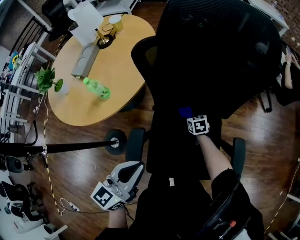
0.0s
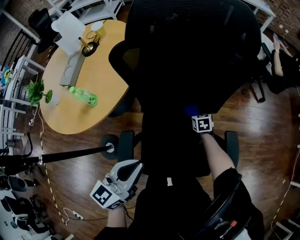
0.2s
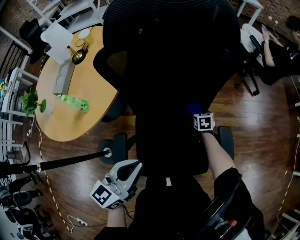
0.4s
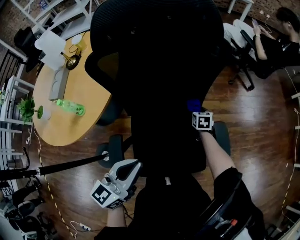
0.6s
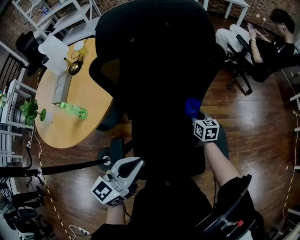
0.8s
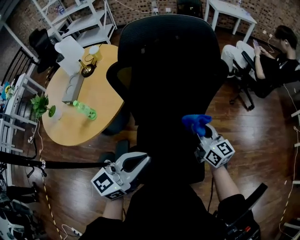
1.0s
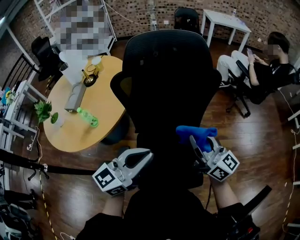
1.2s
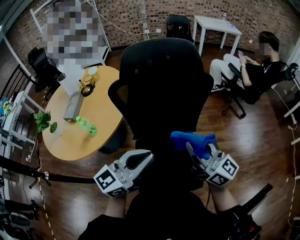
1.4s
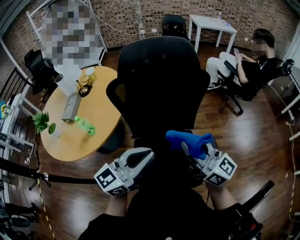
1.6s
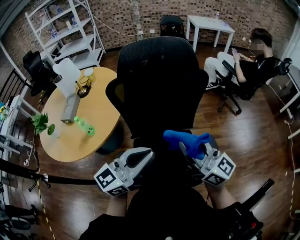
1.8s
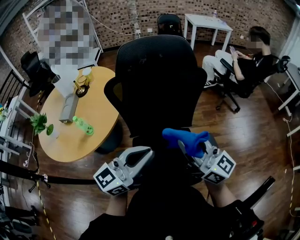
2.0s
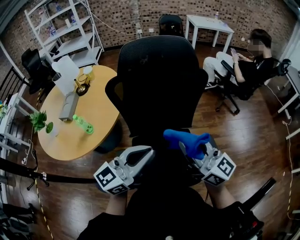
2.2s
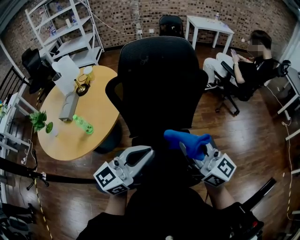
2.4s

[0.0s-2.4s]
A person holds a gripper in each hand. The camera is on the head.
0.0s to 1.2s: The right gripper travels upward by roughly 40 cm, and tilts its fingers approximately 70 degrees upward, while the left gripper goes some 15 cm to the right, upward and forward, and rotates roughly 30 degrees.
1.2s to 2.4s: The right gripper goes some 10 cm backward and upward.

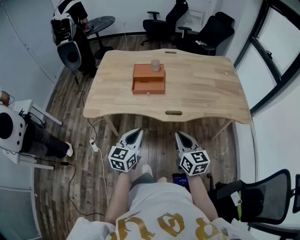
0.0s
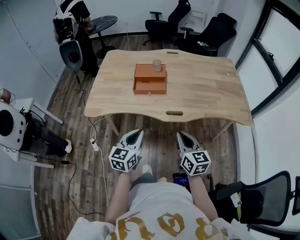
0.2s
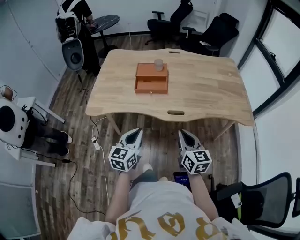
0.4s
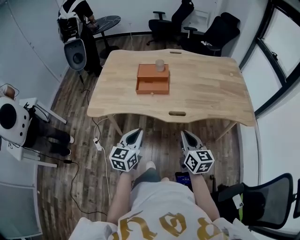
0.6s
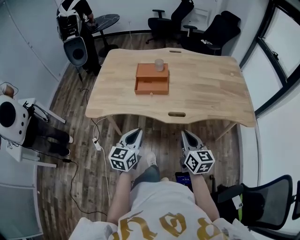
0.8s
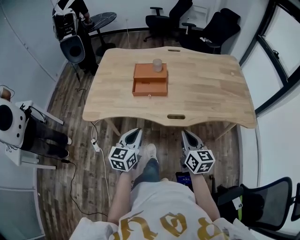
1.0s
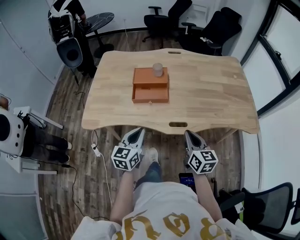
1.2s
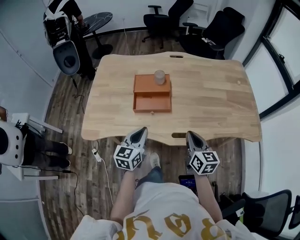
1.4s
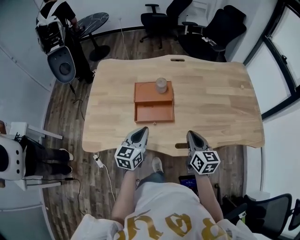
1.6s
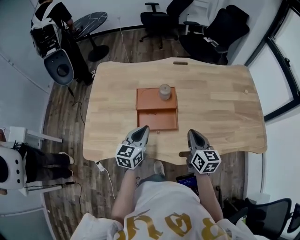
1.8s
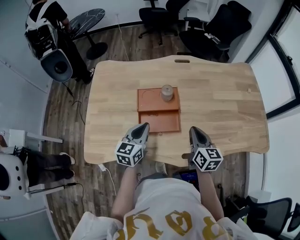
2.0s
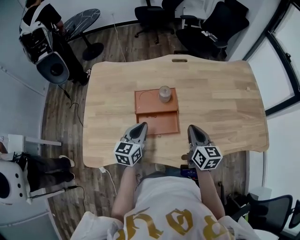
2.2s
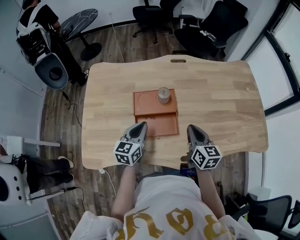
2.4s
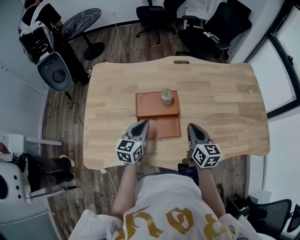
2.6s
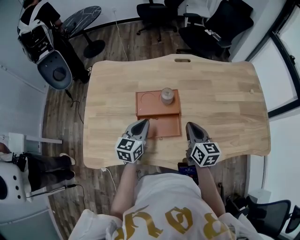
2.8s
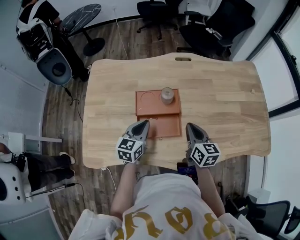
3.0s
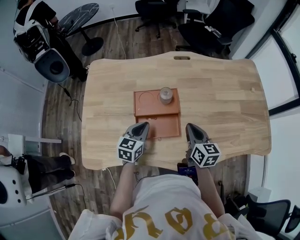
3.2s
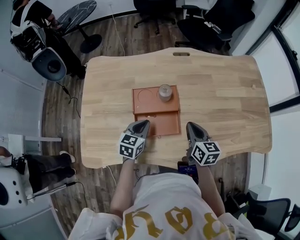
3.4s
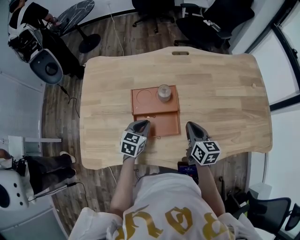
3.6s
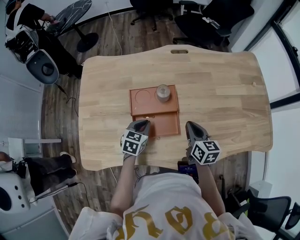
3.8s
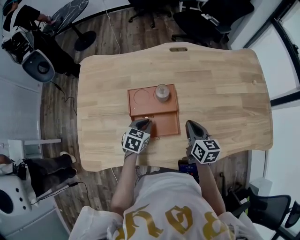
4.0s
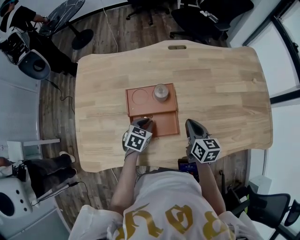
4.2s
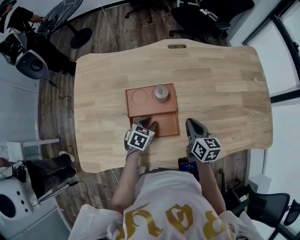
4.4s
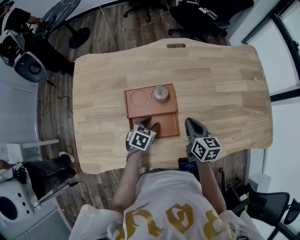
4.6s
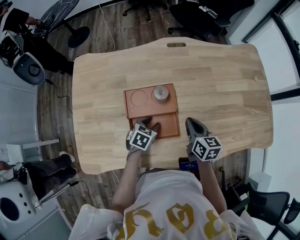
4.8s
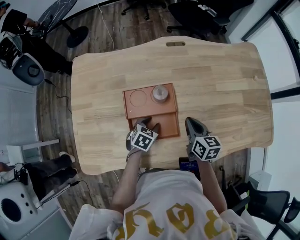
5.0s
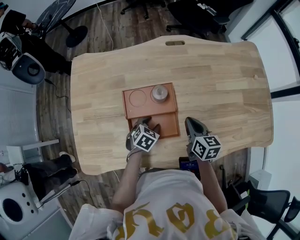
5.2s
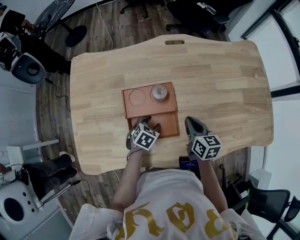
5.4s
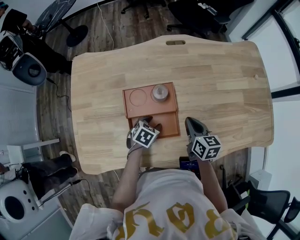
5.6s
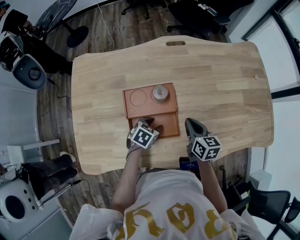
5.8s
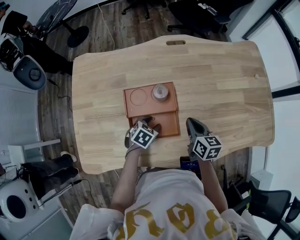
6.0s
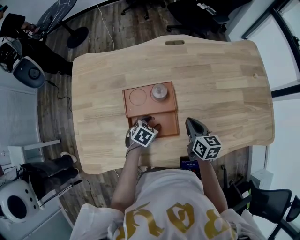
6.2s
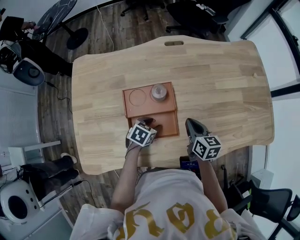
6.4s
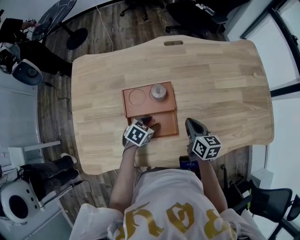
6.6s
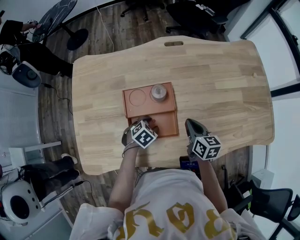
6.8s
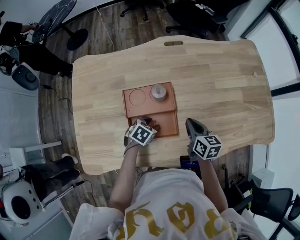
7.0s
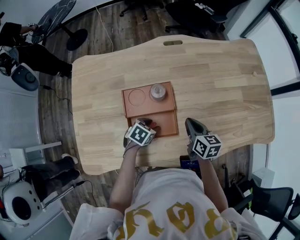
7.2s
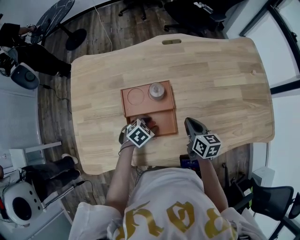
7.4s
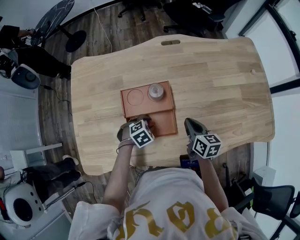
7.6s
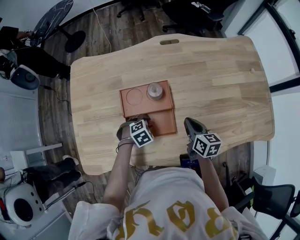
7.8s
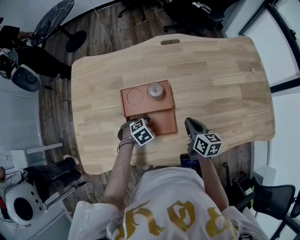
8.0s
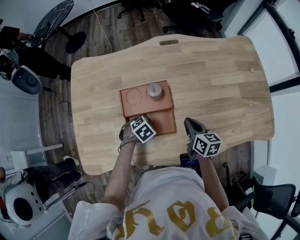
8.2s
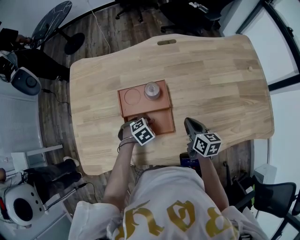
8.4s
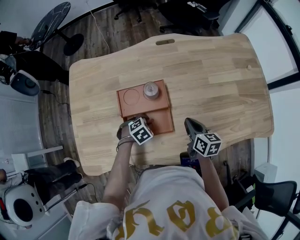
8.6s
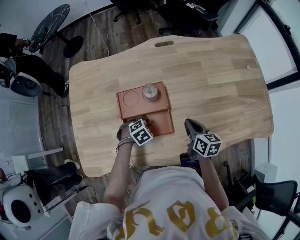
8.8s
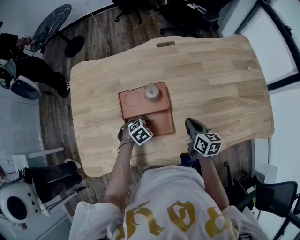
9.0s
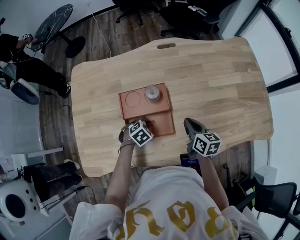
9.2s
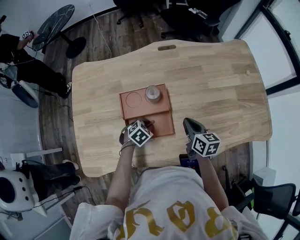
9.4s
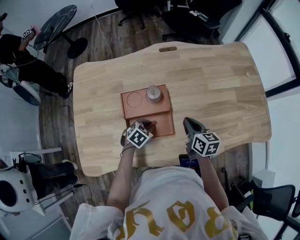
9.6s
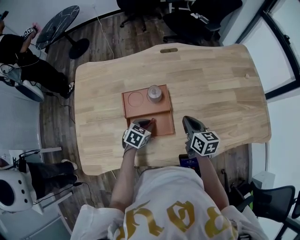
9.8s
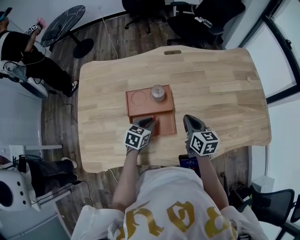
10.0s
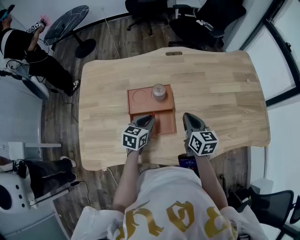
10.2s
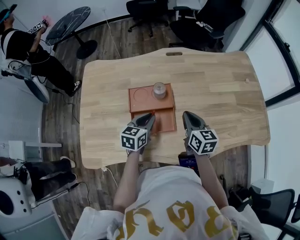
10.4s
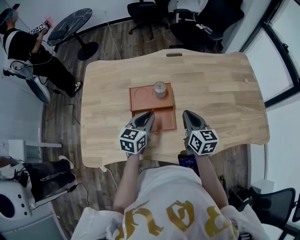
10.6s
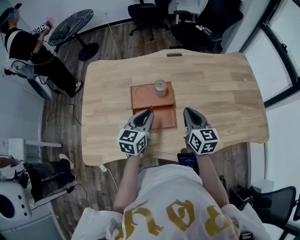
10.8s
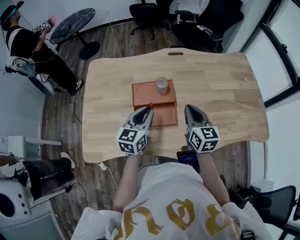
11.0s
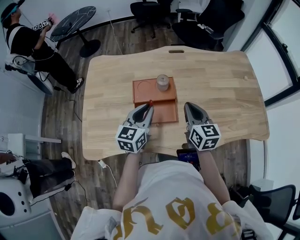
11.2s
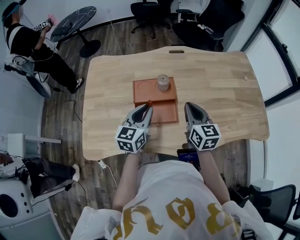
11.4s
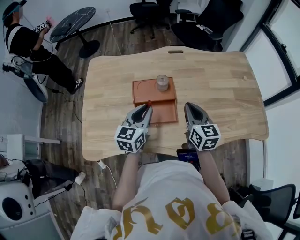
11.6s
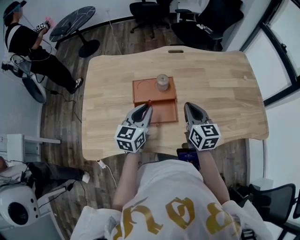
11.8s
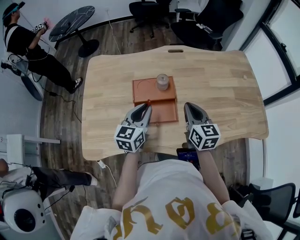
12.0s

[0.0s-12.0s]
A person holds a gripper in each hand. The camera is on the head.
0.0s to 1.6s: The grippers both shift forward by approximately 30 cm.
1.6s to 3.0s: The grippers both shift forward by about 15 cm.
3.0s to 4.4s: The left gripper heads downward, covering about 15 cm, and changes its angle by about 30 degrees. The right gripper travels downward by roughly 5 cm.
4.4s to 6.0s: The left gripper opens its fingers.
6.0s to 7.6s: The left gripper rotates some 30 degrees.
7.6s to 9.0s: The left gripper closes up.
9.0s to 10.4s: The left gripper moves upward, some 15 cm, and tilts its fingers roughly 40 degrees upward, while the right gripper travels upward by roughly 10 cm.
10.4s to 12.0s: The right gripper heads upward, covering some 5 cm. Meanwhile the left gripper heads upward, covering approximately 10 cm.

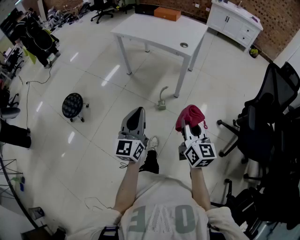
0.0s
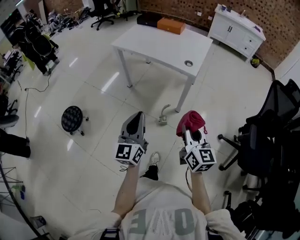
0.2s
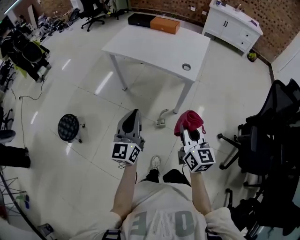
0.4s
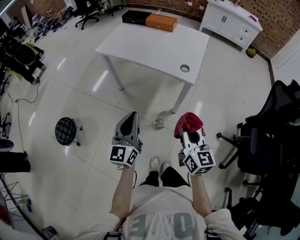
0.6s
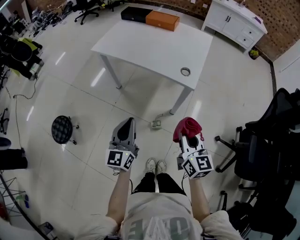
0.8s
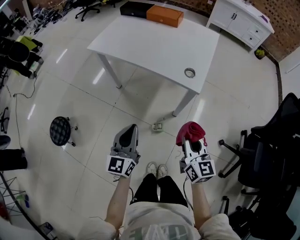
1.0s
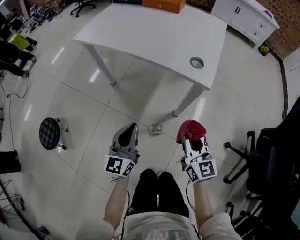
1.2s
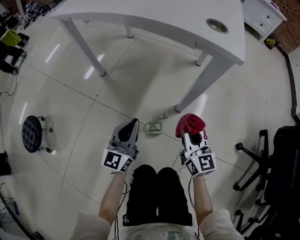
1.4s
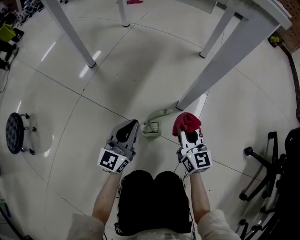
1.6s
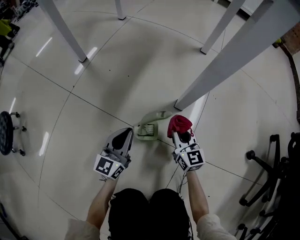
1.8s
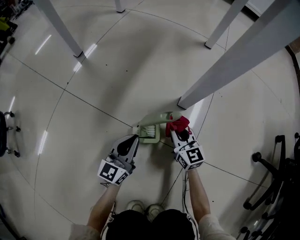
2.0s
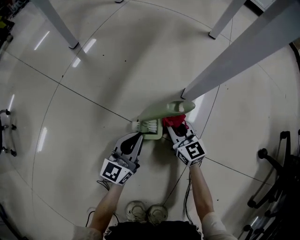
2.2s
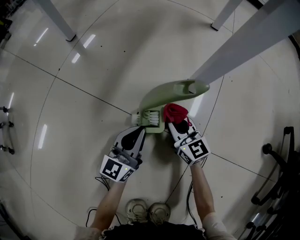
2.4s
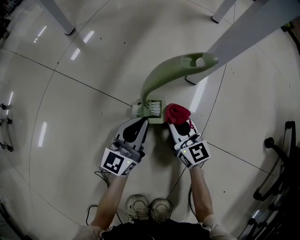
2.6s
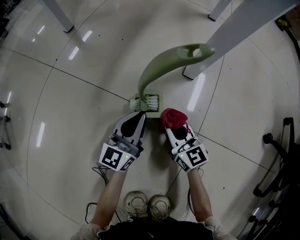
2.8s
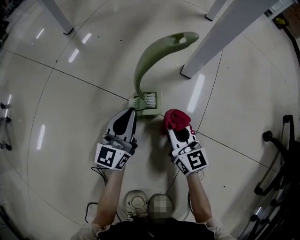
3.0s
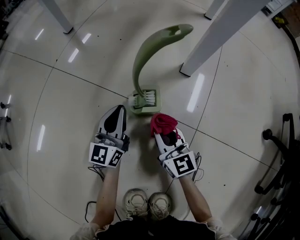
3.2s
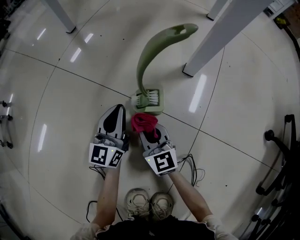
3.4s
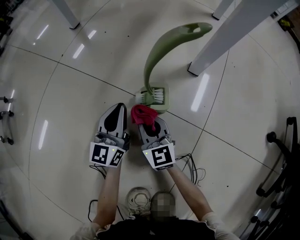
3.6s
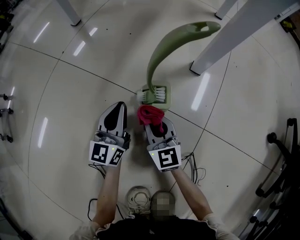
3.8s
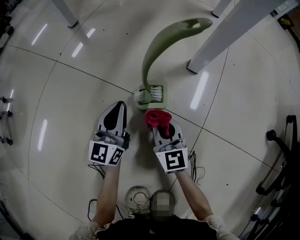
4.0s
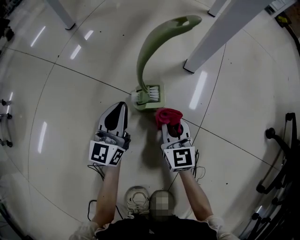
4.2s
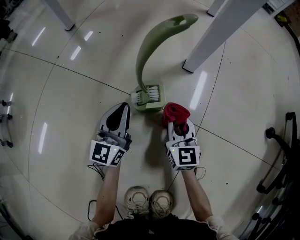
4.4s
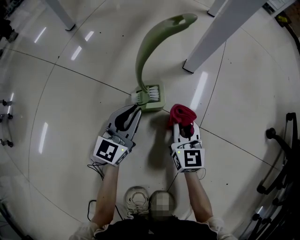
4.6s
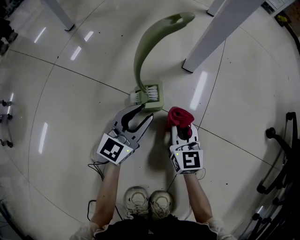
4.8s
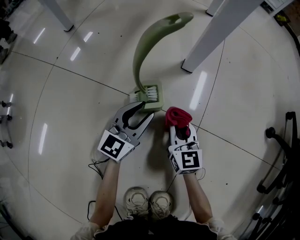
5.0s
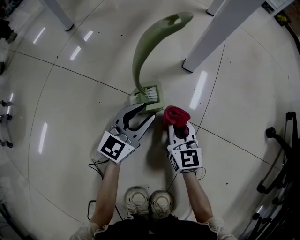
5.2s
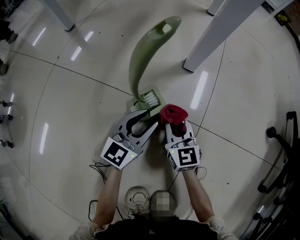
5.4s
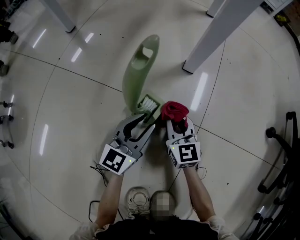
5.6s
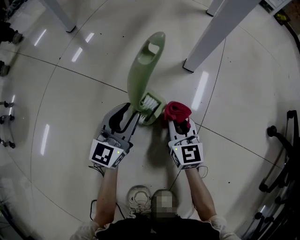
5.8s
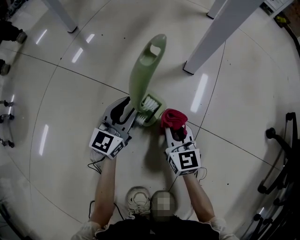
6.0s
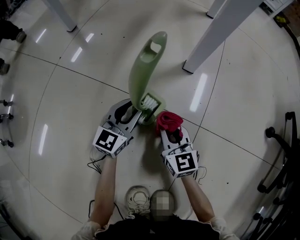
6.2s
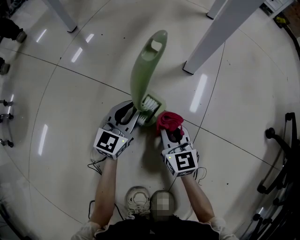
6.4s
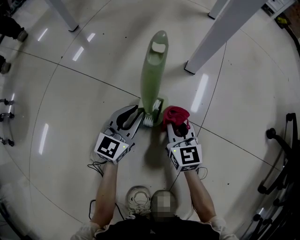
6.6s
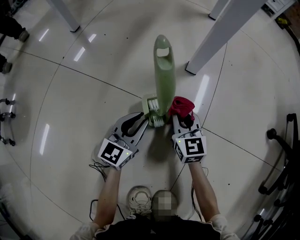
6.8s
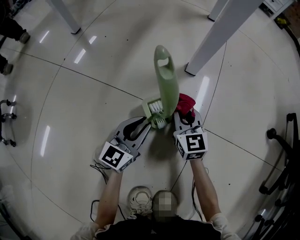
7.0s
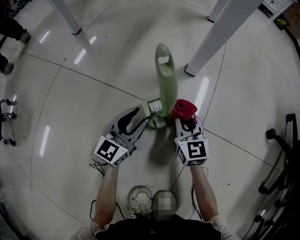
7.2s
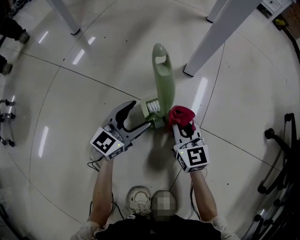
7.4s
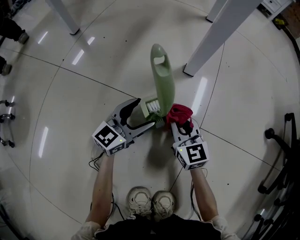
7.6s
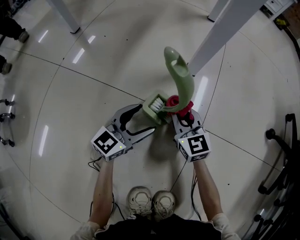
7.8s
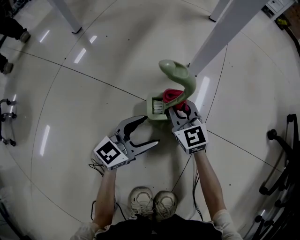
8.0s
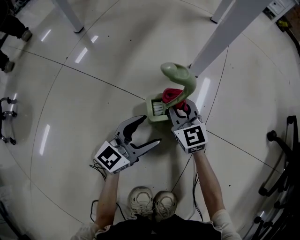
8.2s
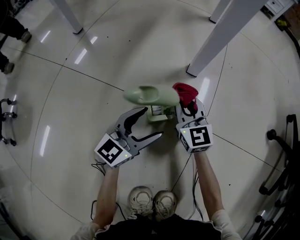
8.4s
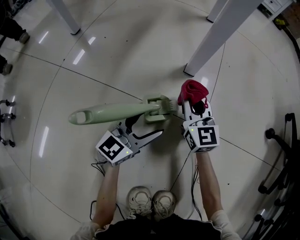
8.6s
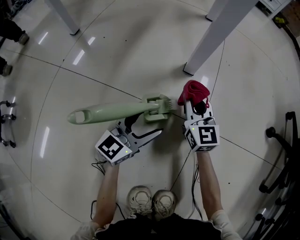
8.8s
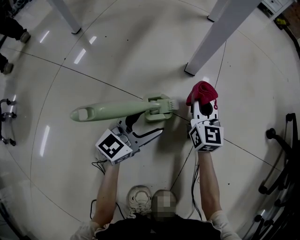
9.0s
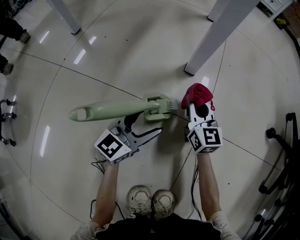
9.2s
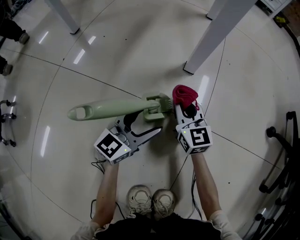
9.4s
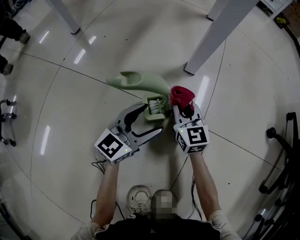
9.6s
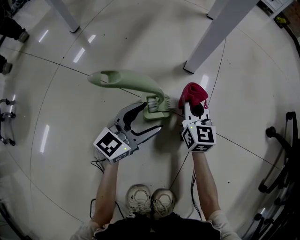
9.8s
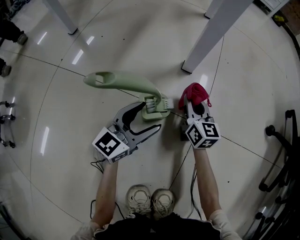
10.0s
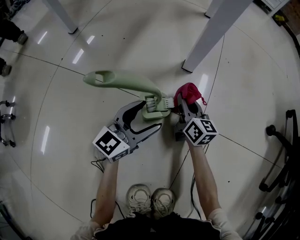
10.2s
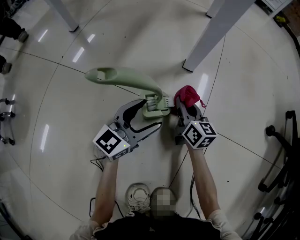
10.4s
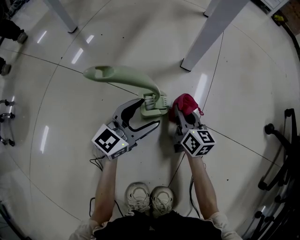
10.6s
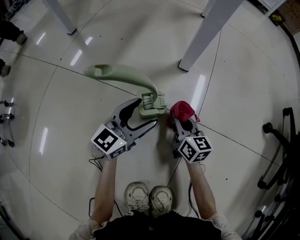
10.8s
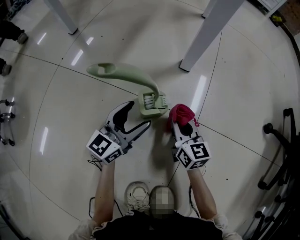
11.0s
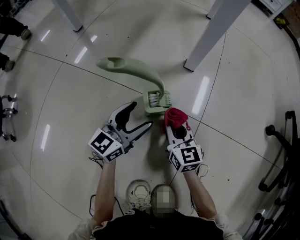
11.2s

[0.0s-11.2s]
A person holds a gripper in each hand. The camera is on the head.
0.0s to 1.6s: Both grippers are carried forward, some 40 cm. The grippers both shift downward by roughly 70 cm.
1.6s to 3.2s: Both grippers travel together downward, some 20 cm.
3.2s to 4.8s: Both grippers travel together to the right, roughly 10 cm. The left gripper rotates roughly 30 degrees.
4.8s to 6.4s: The left gripper ends up some 5 cm from where it was; the right gripper moves approximately 5 cm.
6.4s to 8.0s: The right gripper swings forward and backward, about 5 cm each way, with 2 reversals, while the left gripper goes approximately 10 cm backward and to the right, swivels about 20 degrees, and opens its fingers.
8.0s to 9.6s: The right gripper moves roughly 10 cm to the right and comes back.
9.6s to 11.2s: The right gripper goes roughly 10 cm backward.
